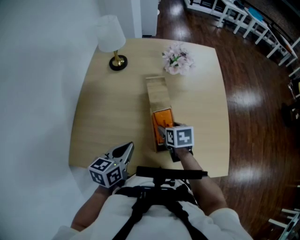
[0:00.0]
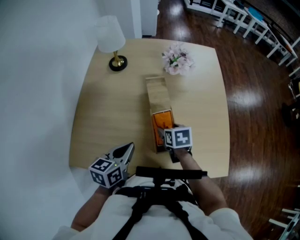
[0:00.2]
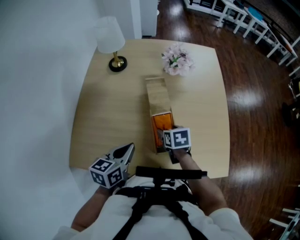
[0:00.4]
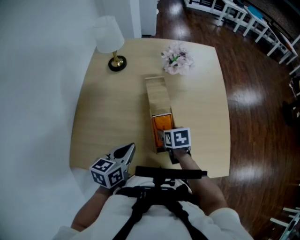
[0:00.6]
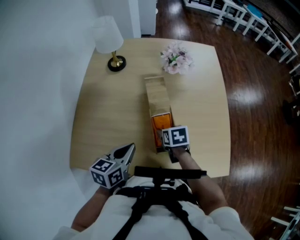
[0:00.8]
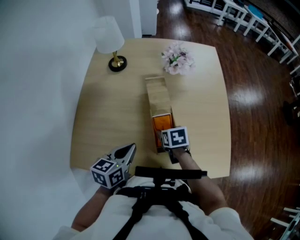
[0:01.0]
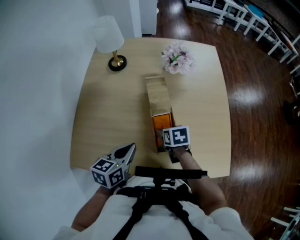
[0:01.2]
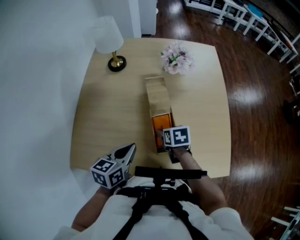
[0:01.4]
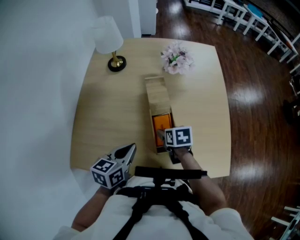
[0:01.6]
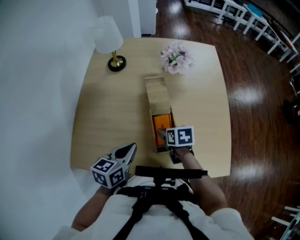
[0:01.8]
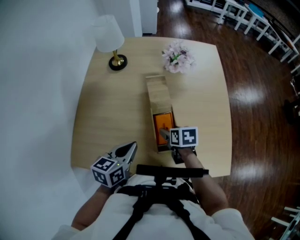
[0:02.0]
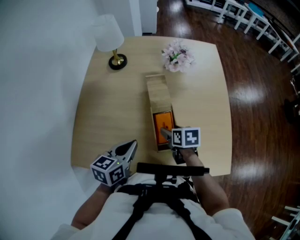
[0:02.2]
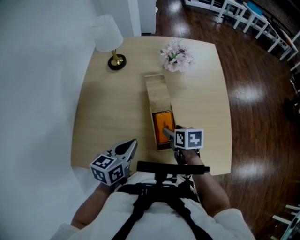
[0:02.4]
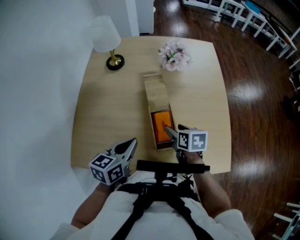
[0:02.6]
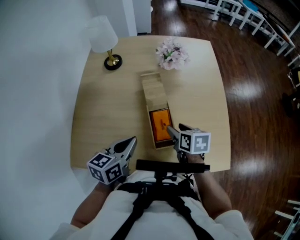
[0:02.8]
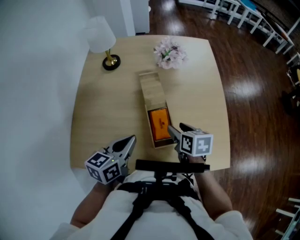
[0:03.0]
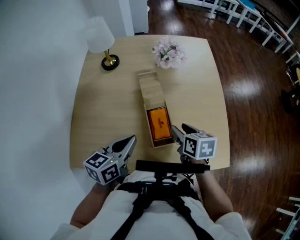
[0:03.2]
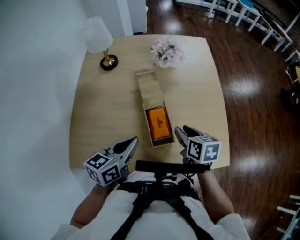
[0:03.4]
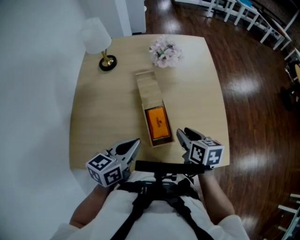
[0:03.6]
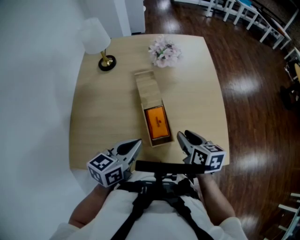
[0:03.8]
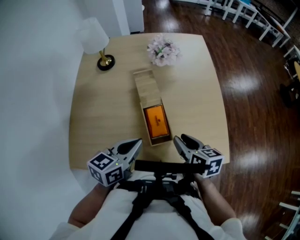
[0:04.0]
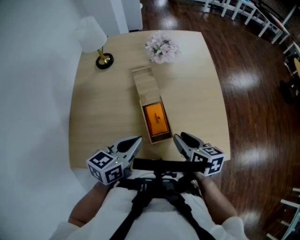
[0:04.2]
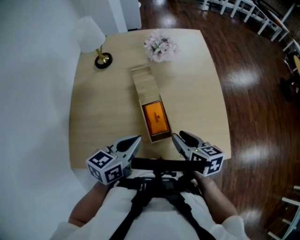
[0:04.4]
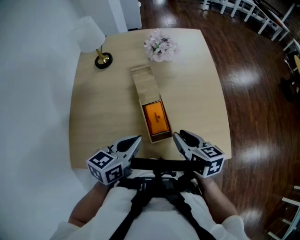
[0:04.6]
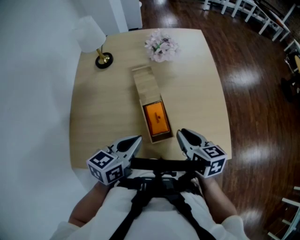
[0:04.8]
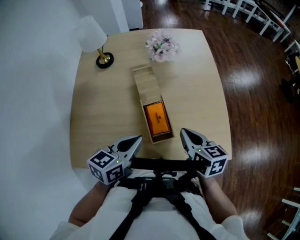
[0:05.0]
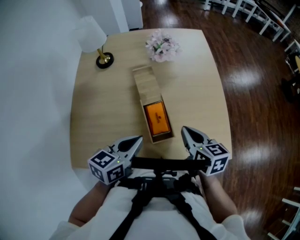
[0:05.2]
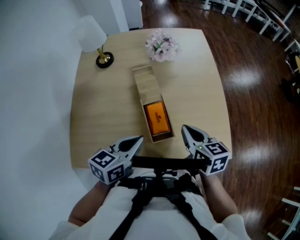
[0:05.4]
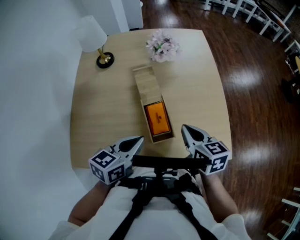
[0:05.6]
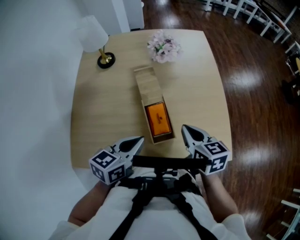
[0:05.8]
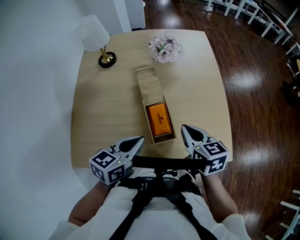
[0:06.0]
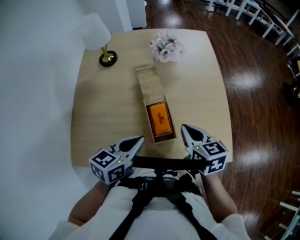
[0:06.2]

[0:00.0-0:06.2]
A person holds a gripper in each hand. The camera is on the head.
0:00.0 to 0:01.6: The grippers stay close to where they were, moving slightly.
0:01.6 to 0:03.2: The left gripper shifts by about 5 cm, while the right gripper is displaced upward and to the right by approximately 10 cm.
0:03.2 to 0:04.6: The right gripper goes approximately 5 cm backward.
0:04.6 to 0:06.2: There are only small adjustments of the grippers.

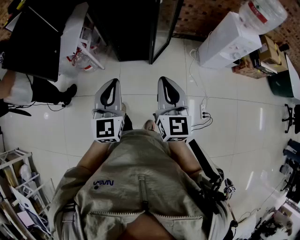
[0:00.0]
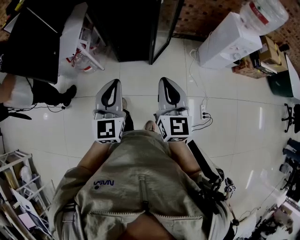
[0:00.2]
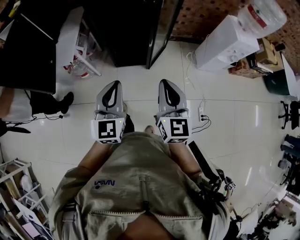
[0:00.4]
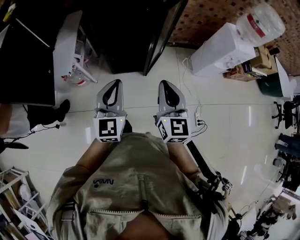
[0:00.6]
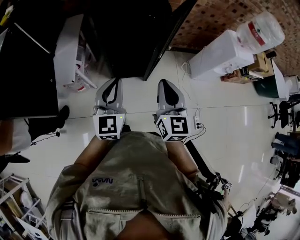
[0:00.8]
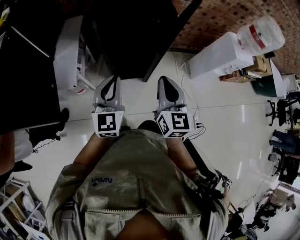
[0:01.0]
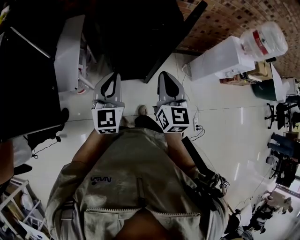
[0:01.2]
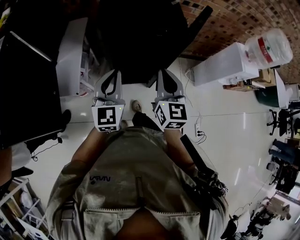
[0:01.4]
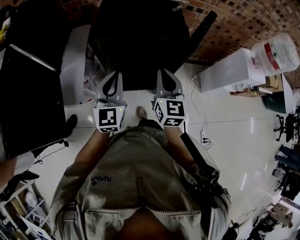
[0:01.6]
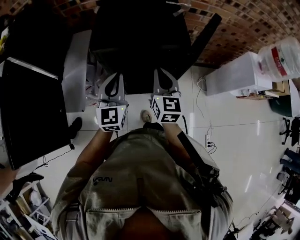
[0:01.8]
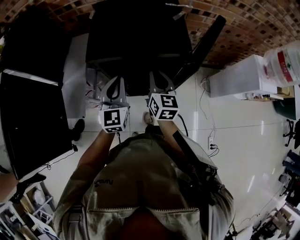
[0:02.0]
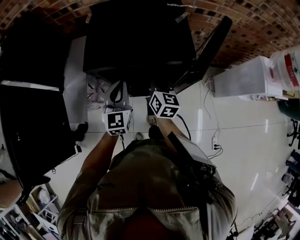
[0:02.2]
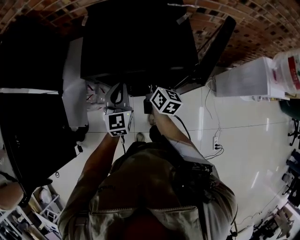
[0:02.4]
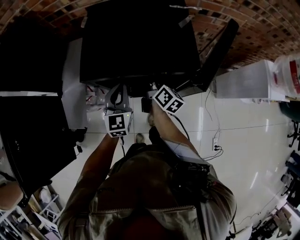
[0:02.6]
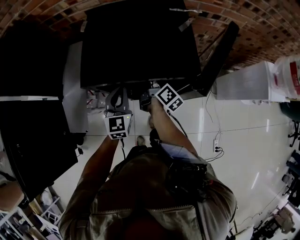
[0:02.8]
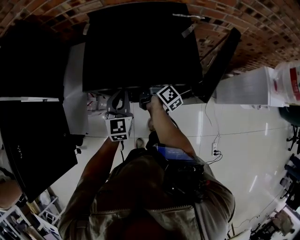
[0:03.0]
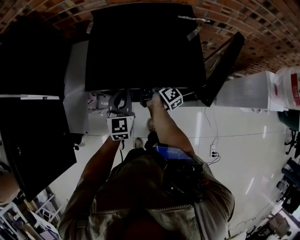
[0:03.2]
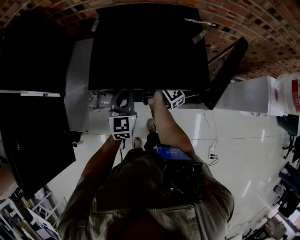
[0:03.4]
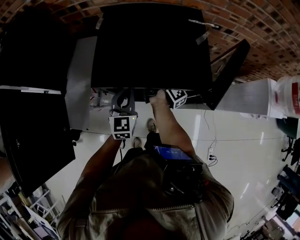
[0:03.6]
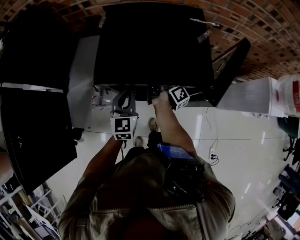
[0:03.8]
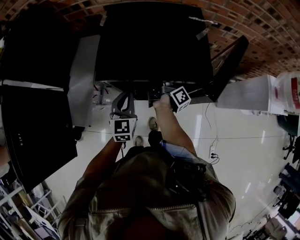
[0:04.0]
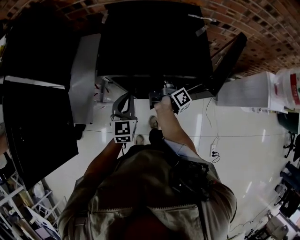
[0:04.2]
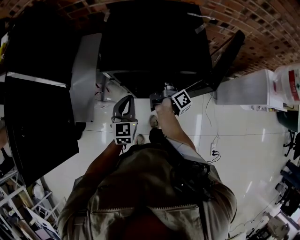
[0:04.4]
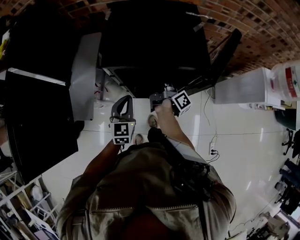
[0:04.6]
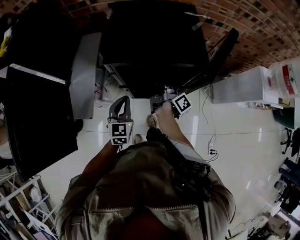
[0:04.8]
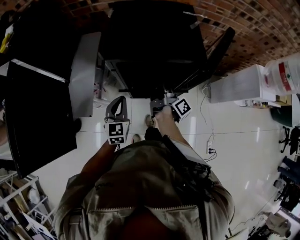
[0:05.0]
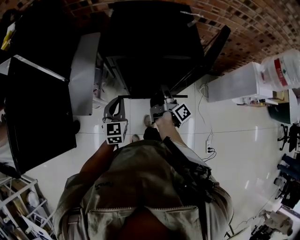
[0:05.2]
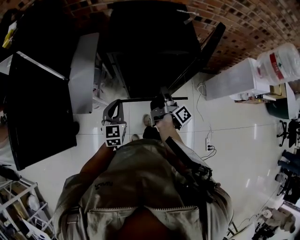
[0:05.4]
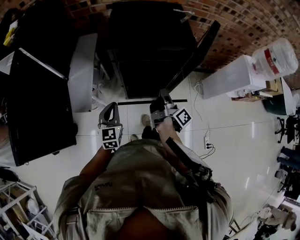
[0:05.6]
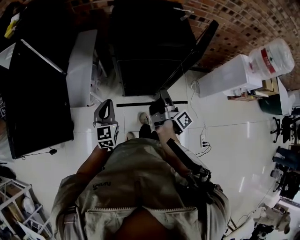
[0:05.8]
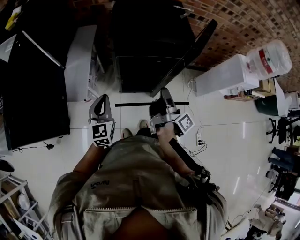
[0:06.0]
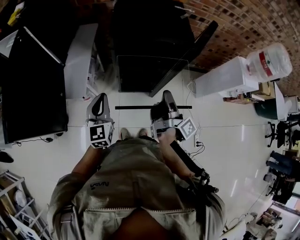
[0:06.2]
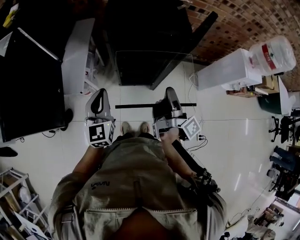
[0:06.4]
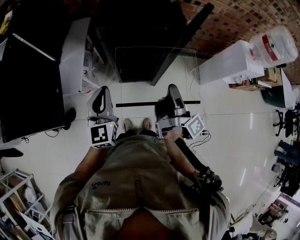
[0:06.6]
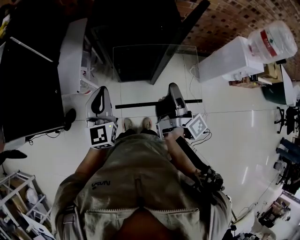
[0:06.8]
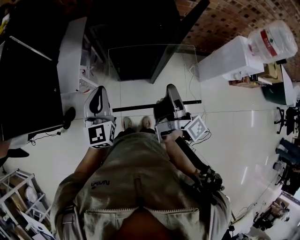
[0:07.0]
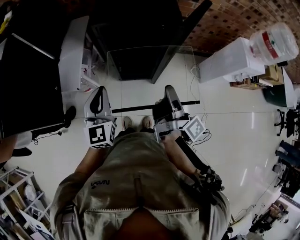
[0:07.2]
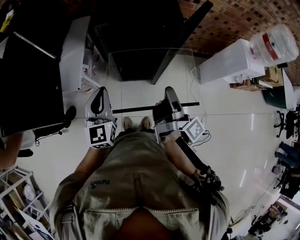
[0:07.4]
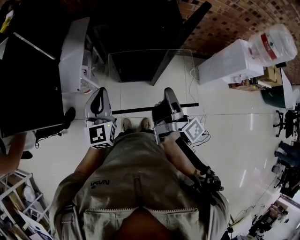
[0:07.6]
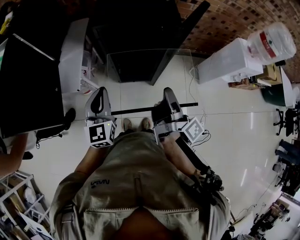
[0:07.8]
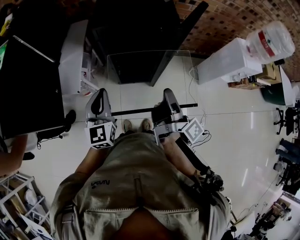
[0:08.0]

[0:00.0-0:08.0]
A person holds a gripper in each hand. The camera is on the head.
0:00.0 to 0:01.6: Both grippers move forward and to the left, some 40 cm.
0:01.6 to 0:03.2: The left gripper moves forward and downward, approximately 20 cm, while the right gripper goes roughly 30 cm forward and downward, rotates around the line of its fingers by about 80 degrees, clockwise from behind, and opens its fingers.
0:03.2 to 0:04.8: Both grippers travel together backward, about 10 cm. The right gripper closes up.
0:04.8 to 0:06.4: The left gripper heads backward and upward, covering about 20 cm; the right gripper travels backward and upward by approximately 30 cm.
0:06.4 to 0:08.0: The right gripper ends up roughly 5 cm from where it was.

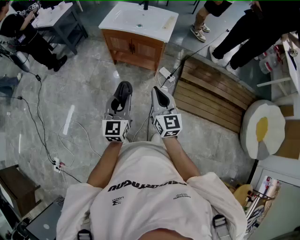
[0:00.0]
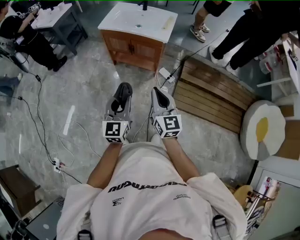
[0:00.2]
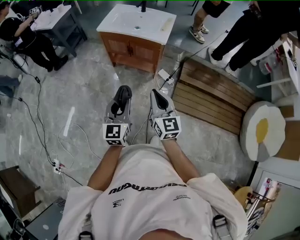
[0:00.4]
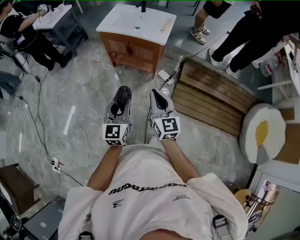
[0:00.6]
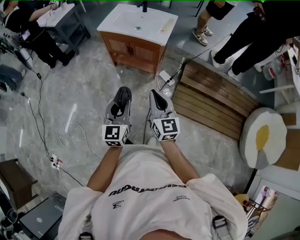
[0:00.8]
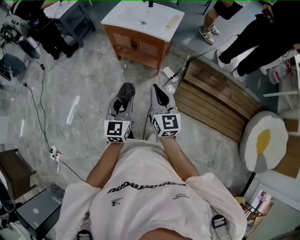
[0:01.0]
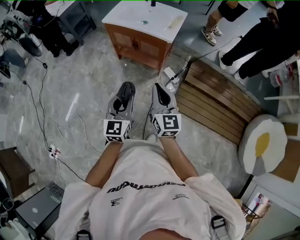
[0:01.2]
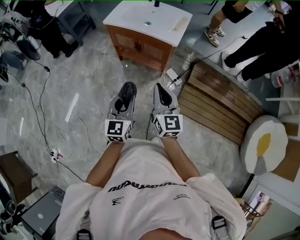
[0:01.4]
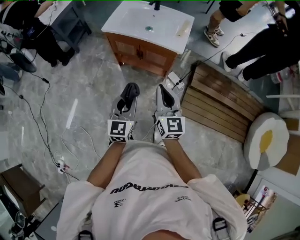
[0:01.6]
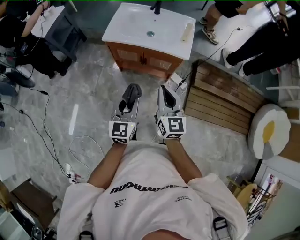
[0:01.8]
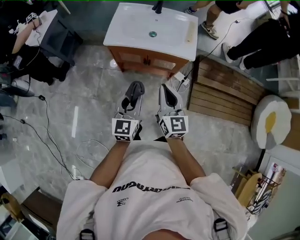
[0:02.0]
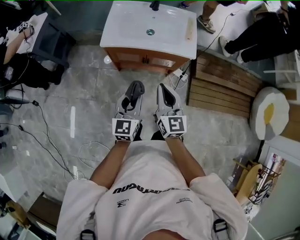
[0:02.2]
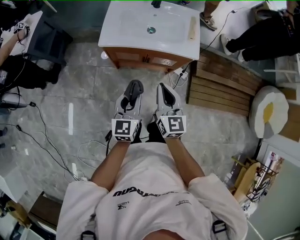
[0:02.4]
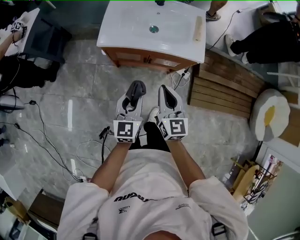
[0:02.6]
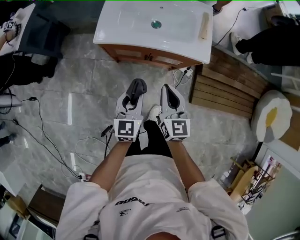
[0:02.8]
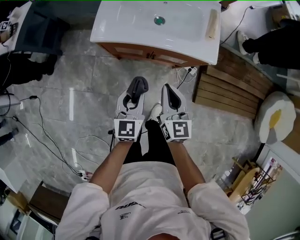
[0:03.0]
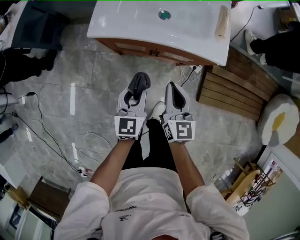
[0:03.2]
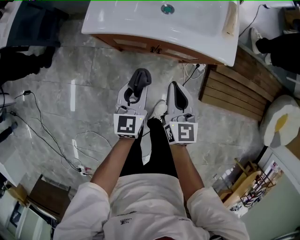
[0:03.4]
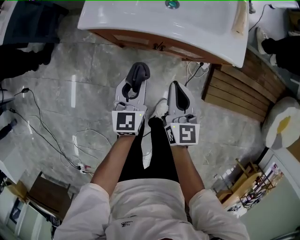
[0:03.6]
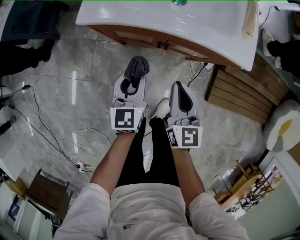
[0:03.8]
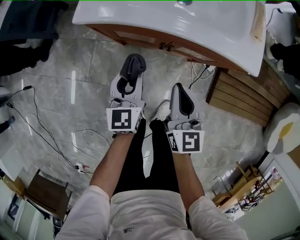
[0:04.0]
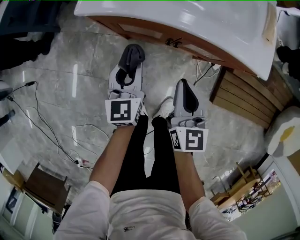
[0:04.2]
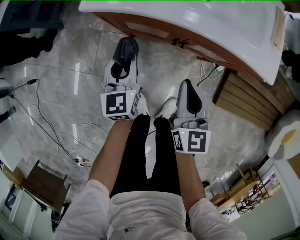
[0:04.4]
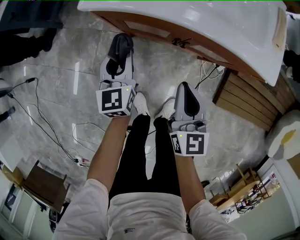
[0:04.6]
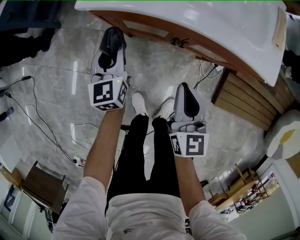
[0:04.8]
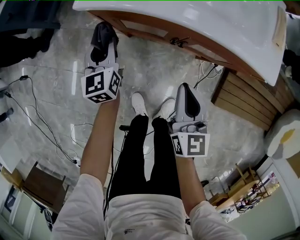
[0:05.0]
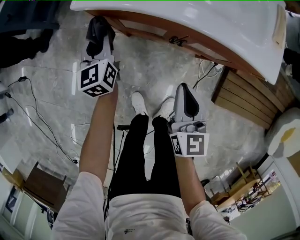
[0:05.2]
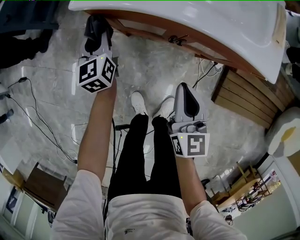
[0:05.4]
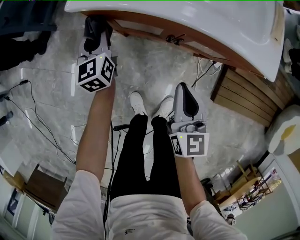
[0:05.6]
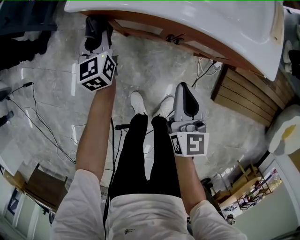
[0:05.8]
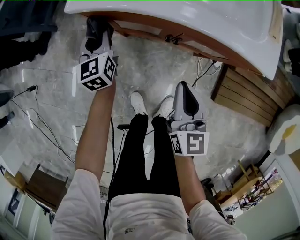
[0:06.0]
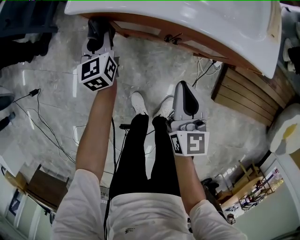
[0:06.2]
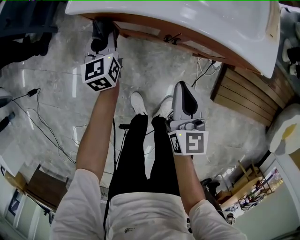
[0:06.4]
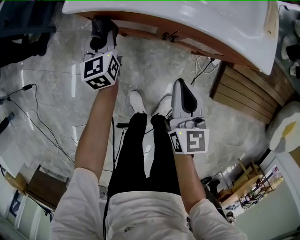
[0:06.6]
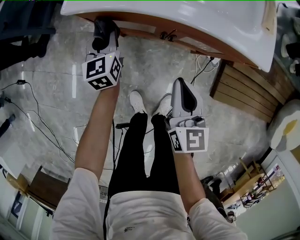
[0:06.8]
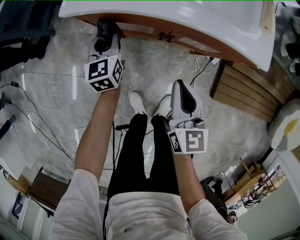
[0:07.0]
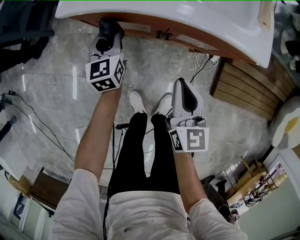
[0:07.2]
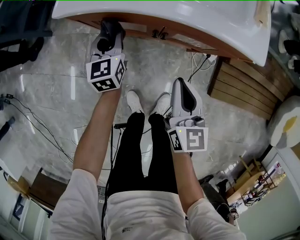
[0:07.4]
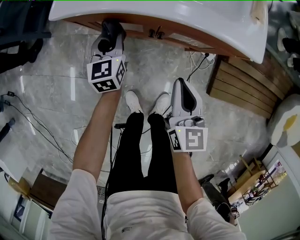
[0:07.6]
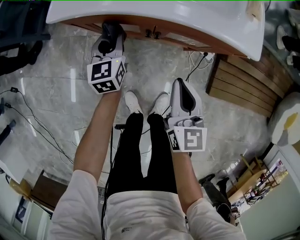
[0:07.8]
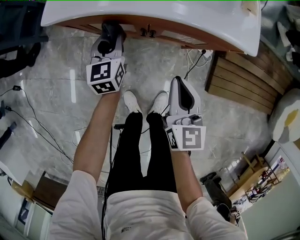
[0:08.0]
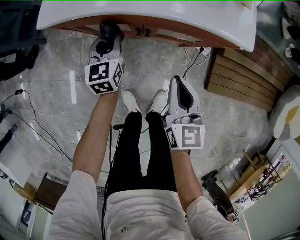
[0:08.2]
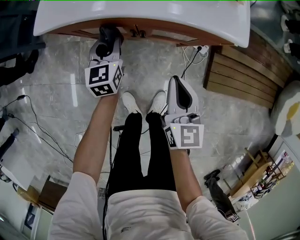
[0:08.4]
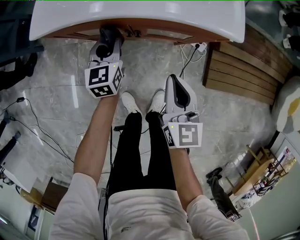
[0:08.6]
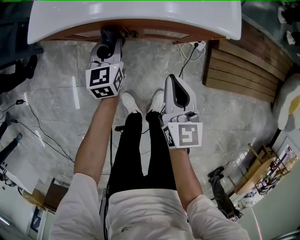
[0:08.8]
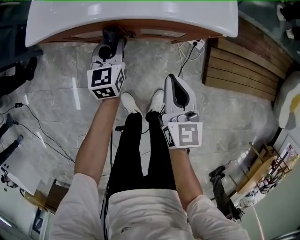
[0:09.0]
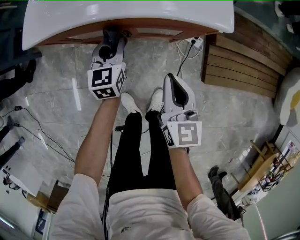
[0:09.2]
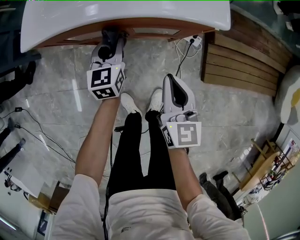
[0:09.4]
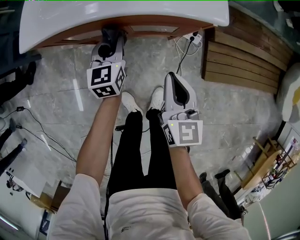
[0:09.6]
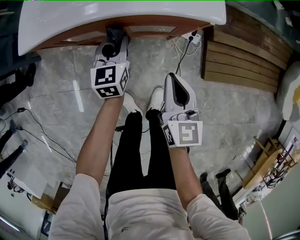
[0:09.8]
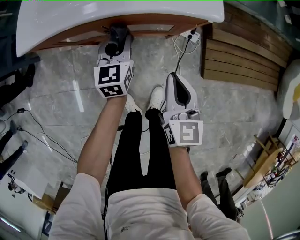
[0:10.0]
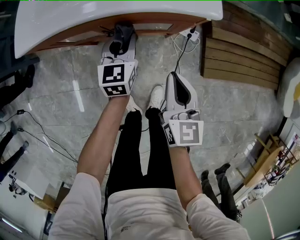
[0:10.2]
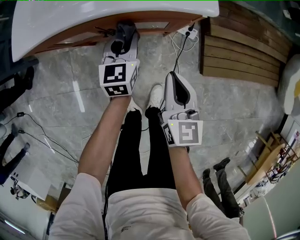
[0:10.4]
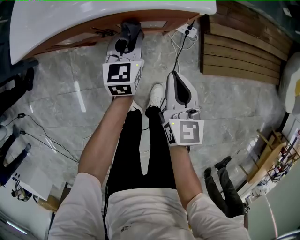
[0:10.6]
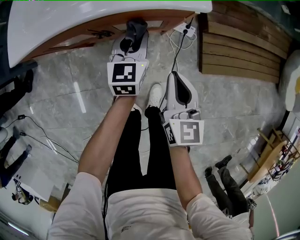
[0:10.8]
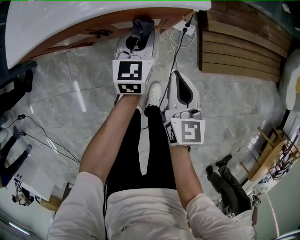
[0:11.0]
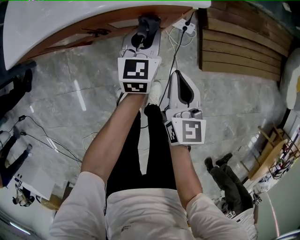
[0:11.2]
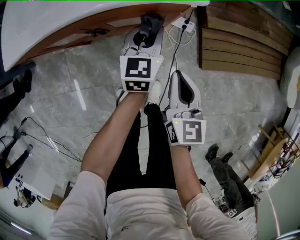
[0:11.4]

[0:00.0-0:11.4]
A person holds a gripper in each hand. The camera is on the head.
0:00.0 to 0:01.4: The left gripper goes roughly 10 cm forward and downward. The right gripper moves forward, some 10 cm.
0:01.4 to 0:02.8: The grippers both shift forward, to the left and downward by about 40 cm. The right gripper rotates approximately 20 degrees.
0:02.8 to 0:04.2: The left gripper travels downward and forward by roughly 25 cm. Meanwhile the right gripper moves downward, roughly 20 cm.
0:04.2 to 0:05.6: The left gripper is displaced forward and to the left by about 15 cm.
0:05.6 to 0:07.2: The left gripper goes about 10 cm to the right.
0:07.2 to 0:08.6: The left gripper is displaced to the right by about 10 cm; the right gripper travels to the right by some 10 cm.
0:08.6 to 0:10.0: The right gripper goes some 5 cm to the right; the left gripper heads to the right, covering roughly 10 cm.
0:10.0 to 0:11.4: The right gripper moves to the right, about 5 cm; the left gripper travels to the right by approximately 15 cm.
